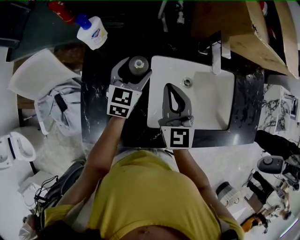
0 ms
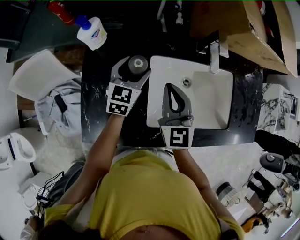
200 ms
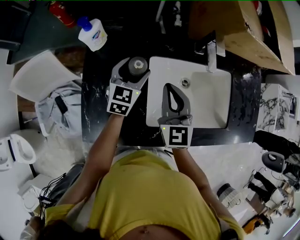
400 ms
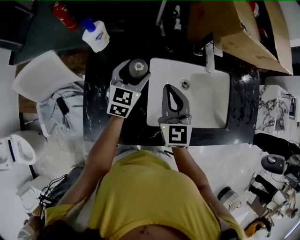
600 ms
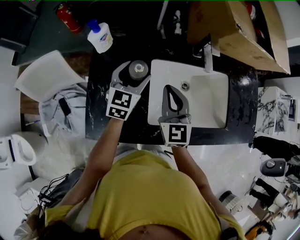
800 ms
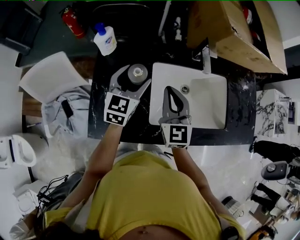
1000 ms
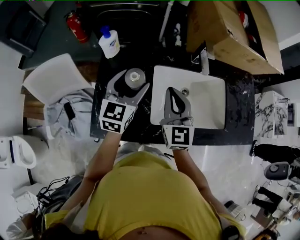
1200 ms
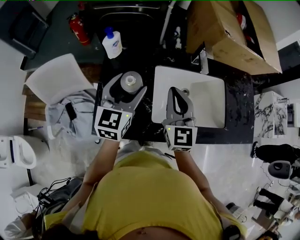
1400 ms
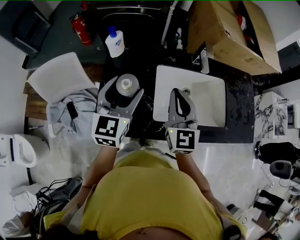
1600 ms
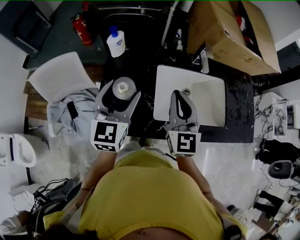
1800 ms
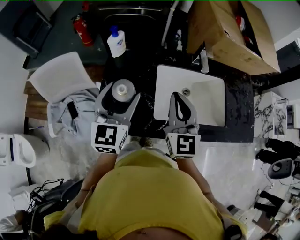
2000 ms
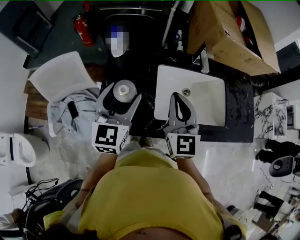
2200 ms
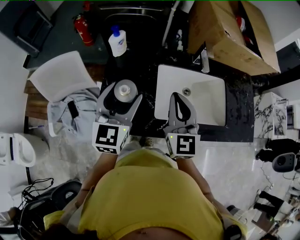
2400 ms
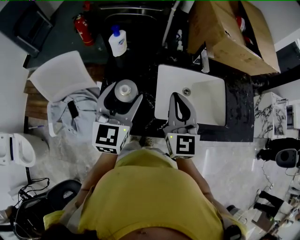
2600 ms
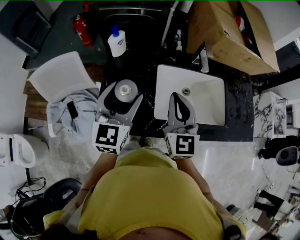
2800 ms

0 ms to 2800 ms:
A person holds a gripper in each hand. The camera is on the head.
0 ms to 1400 ms: The right gripper goes roughly 10 cm upward and backward, while the left gripper is displaced upward and backward by some 20 cm.
1400 ms to 2800 ms: The left gripper heads backward, covering roughly 5 cm. Meanwhile the right gripper shifts by some 5 cm.

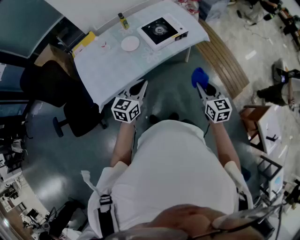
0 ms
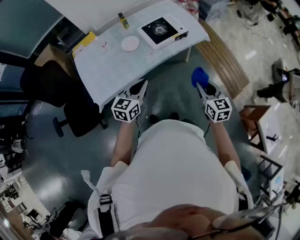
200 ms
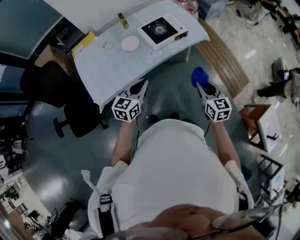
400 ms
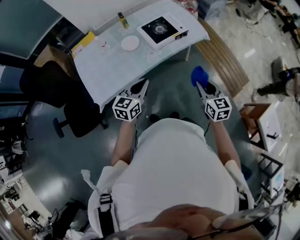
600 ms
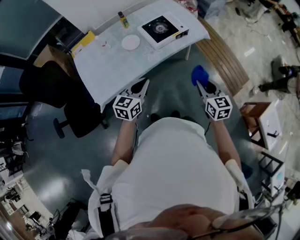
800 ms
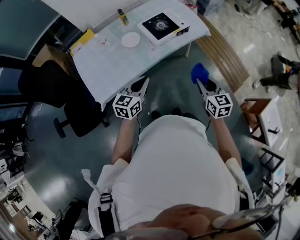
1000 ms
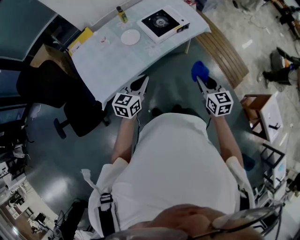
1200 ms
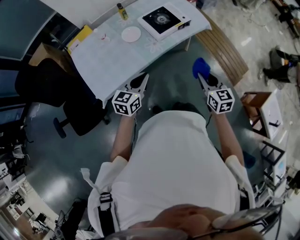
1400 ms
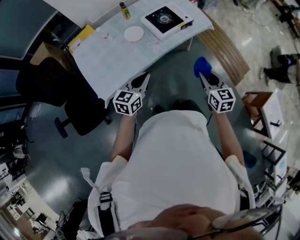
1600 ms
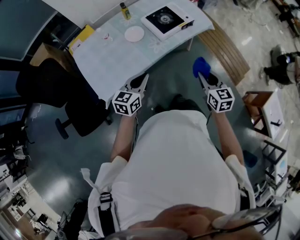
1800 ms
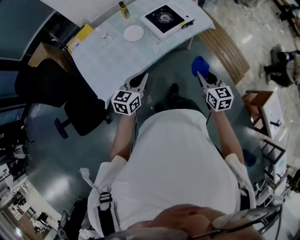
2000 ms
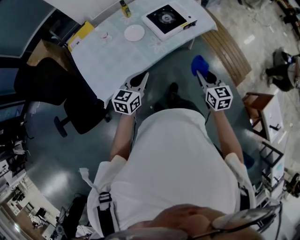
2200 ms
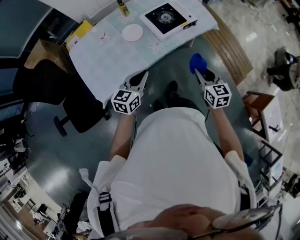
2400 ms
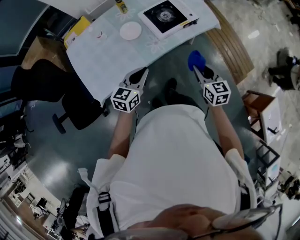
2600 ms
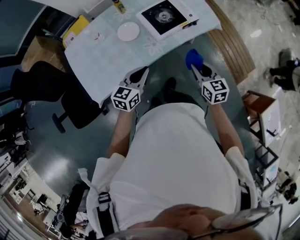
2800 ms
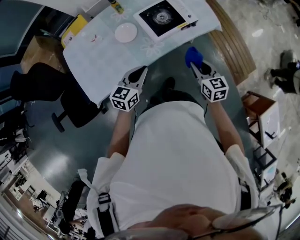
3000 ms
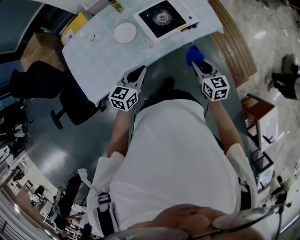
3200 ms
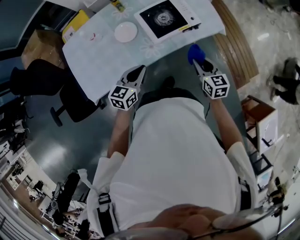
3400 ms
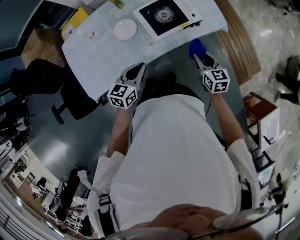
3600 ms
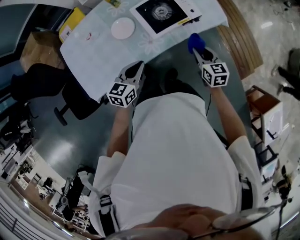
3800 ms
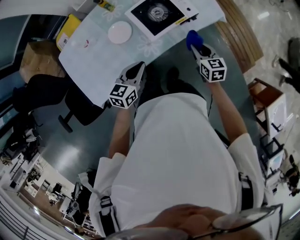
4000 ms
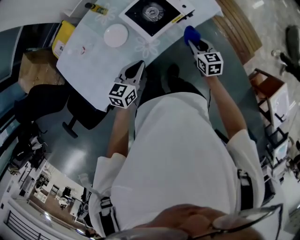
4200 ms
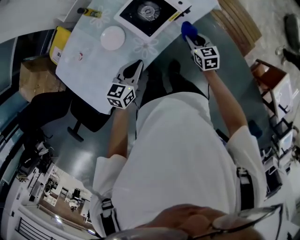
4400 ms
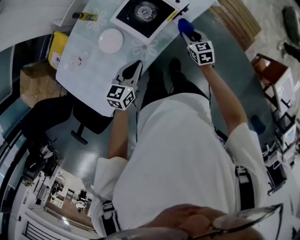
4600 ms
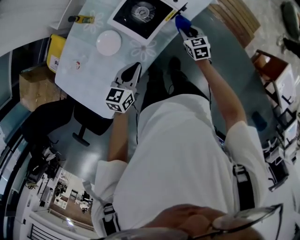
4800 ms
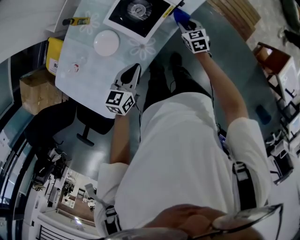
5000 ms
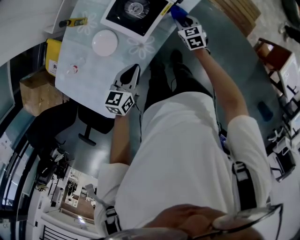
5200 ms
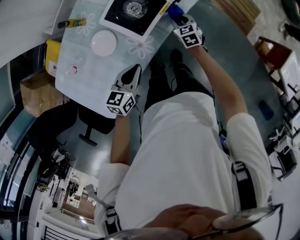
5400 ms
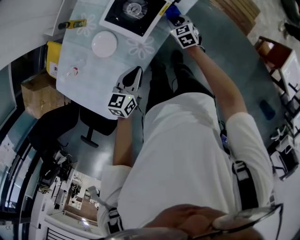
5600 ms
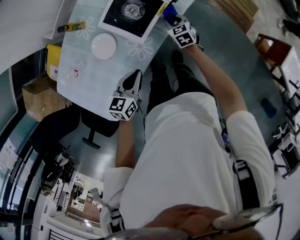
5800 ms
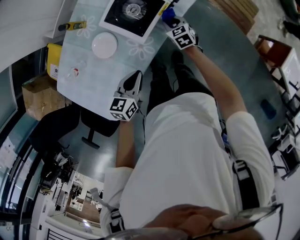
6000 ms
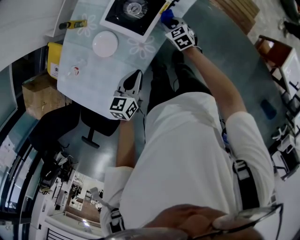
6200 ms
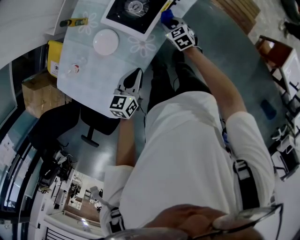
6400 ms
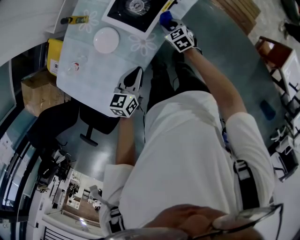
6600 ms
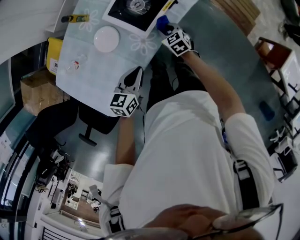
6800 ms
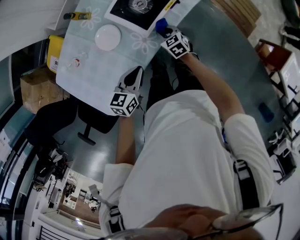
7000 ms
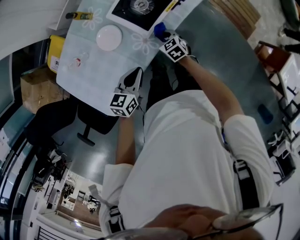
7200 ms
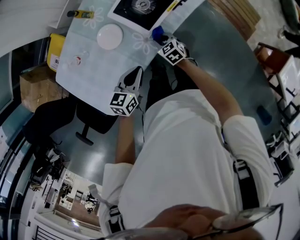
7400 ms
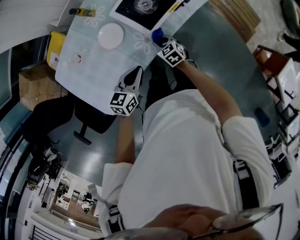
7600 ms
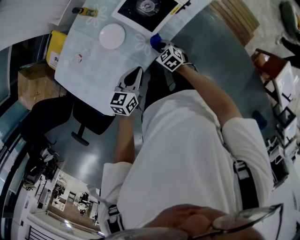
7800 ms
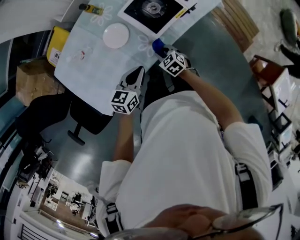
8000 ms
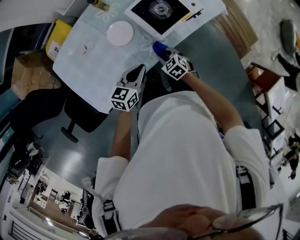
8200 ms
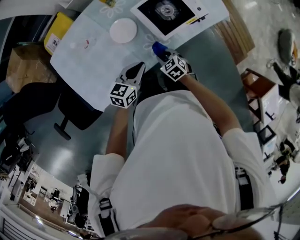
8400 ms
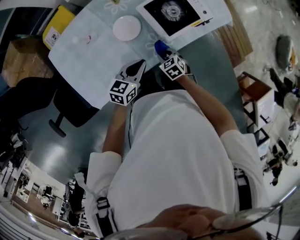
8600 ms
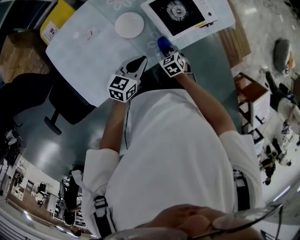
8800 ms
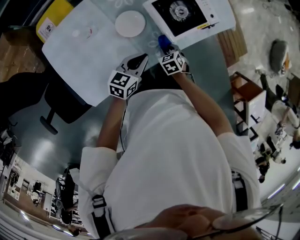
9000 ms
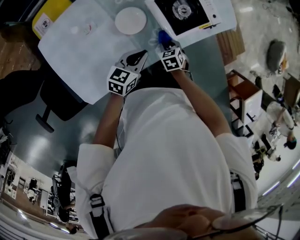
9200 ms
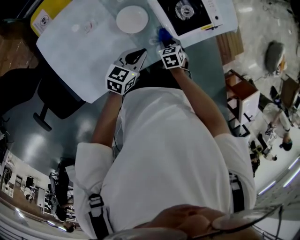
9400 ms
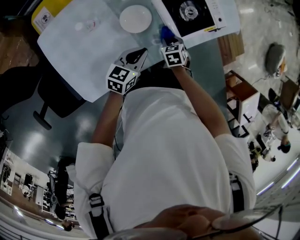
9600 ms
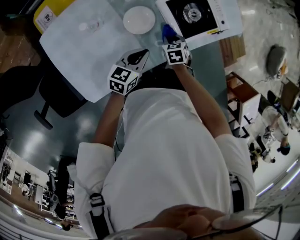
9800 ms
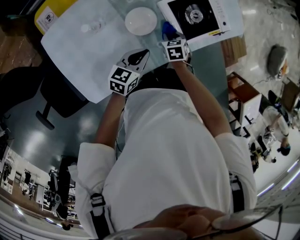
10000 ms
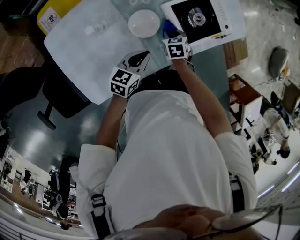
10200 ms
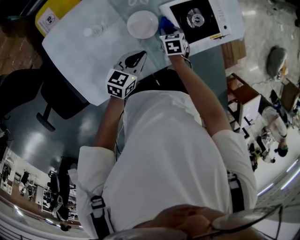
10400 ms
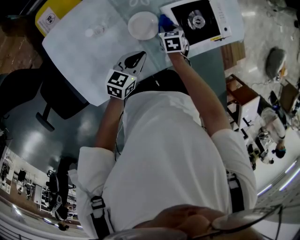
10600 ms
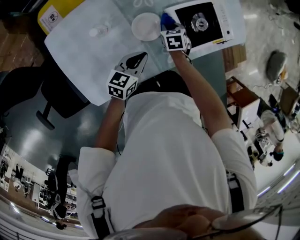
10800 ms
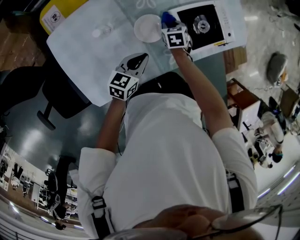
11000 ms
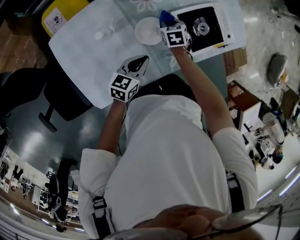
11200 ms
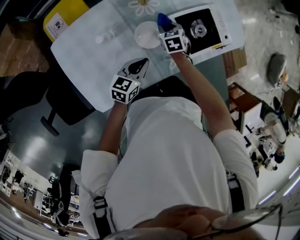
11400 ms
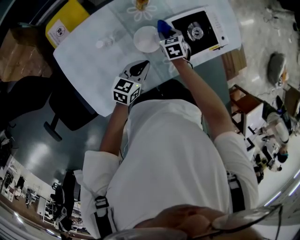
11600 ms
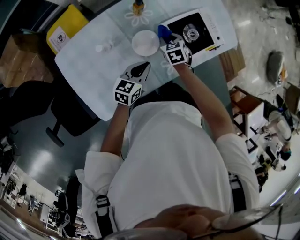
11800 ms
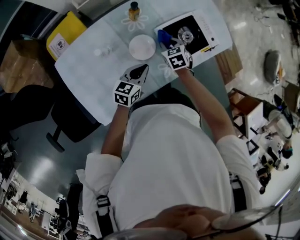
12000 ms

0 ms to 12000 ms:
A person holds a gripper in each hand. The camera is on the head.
0 ms to 1600 ms: The grippers both shift to the left by roughly 5 cm.
1600 ms to 3000 ms: The right gripper travels forward and downward by roughly 20 cm. Meanwhile the left gripper goes about 15 cm forward.
3000 ms to 4400 ms: The left gripper shifts roughly 10 cm forward and downward. The right gripper goes some 20 cm downward and forward.
4400 ms to 6000 ms: The right gripper is displaced downward and to the left by roughly 10 cm. The left gripper ends up approximately 5 cm from where it was.
6000 ms to 7600 ms: The right gripper travels to the left and backward by about 15 cm.
7600 ms to 9000 ms: The right gripper changes place by approximately 5 cm, and changes its angle by roughly 20 degrees; the left gripper is displaced to the left and forward by some 10 cm.
9000 ms to 10400 ms: The right gripper is displaced forward and to the left by approximately 15 cm, while the left gripper goes some 10 cm to the left.
10400 ms to 12000 ms: The right gripper goes roughly 10 cm upward.

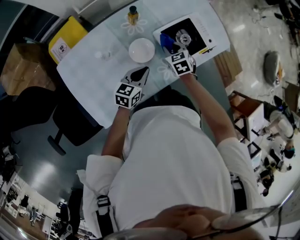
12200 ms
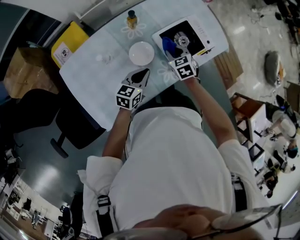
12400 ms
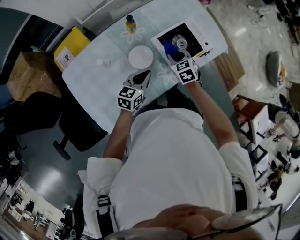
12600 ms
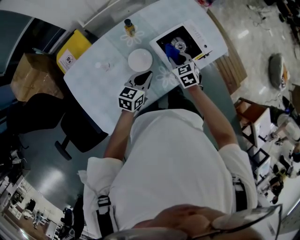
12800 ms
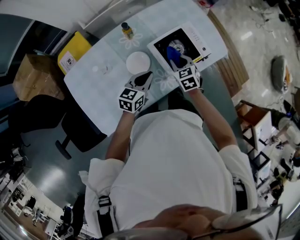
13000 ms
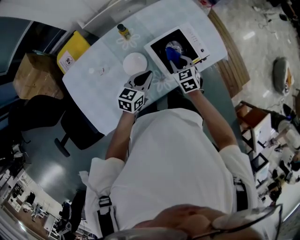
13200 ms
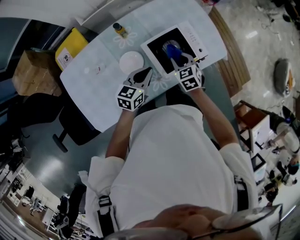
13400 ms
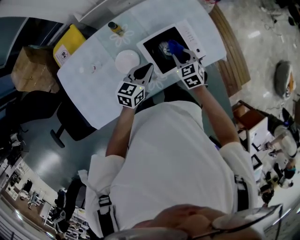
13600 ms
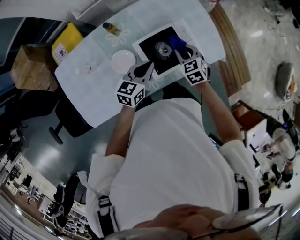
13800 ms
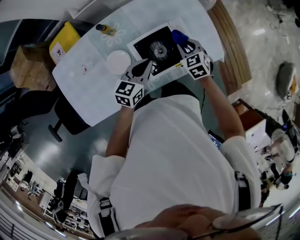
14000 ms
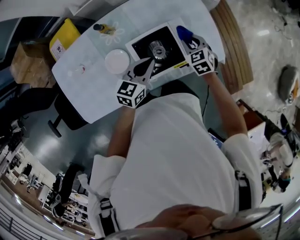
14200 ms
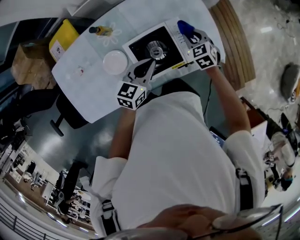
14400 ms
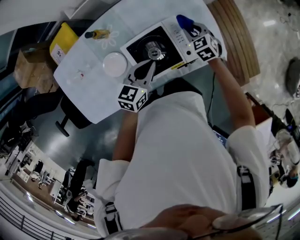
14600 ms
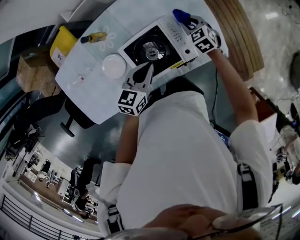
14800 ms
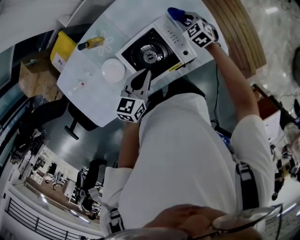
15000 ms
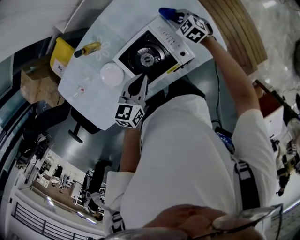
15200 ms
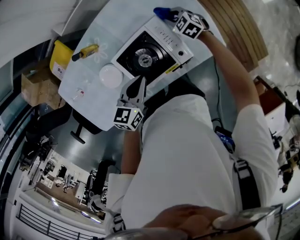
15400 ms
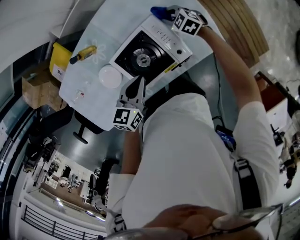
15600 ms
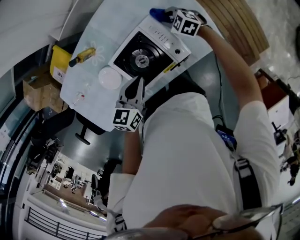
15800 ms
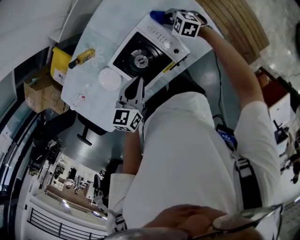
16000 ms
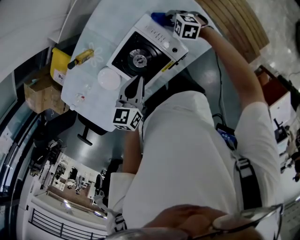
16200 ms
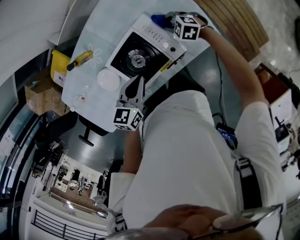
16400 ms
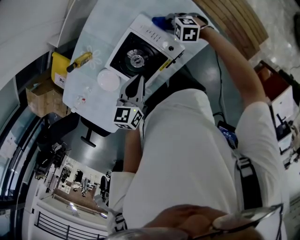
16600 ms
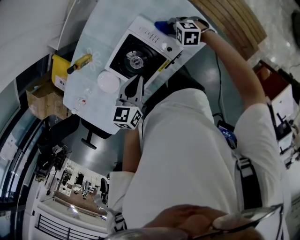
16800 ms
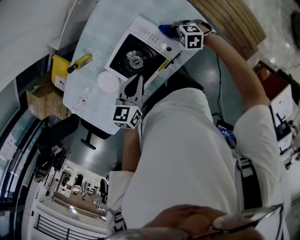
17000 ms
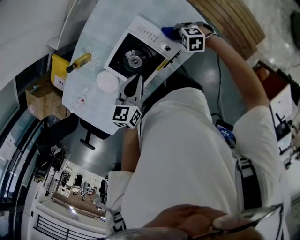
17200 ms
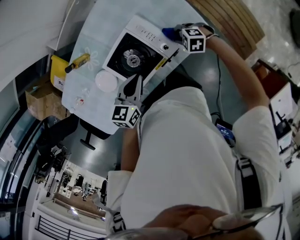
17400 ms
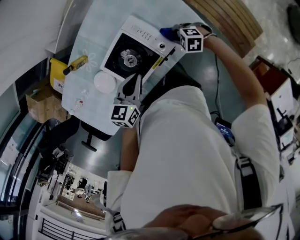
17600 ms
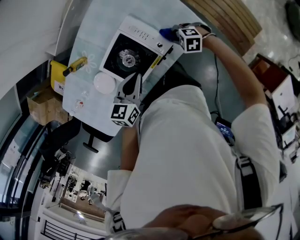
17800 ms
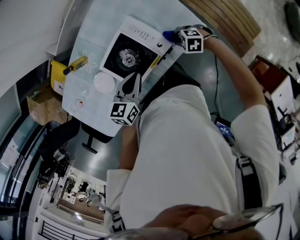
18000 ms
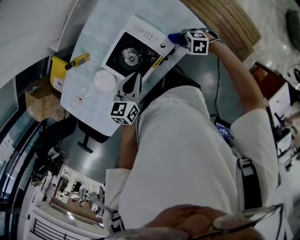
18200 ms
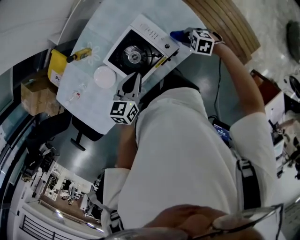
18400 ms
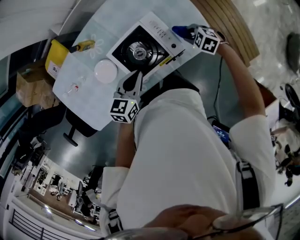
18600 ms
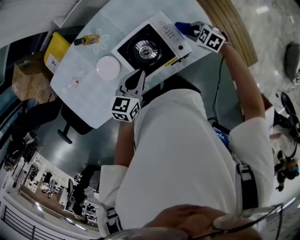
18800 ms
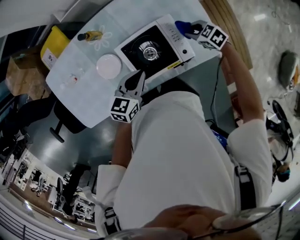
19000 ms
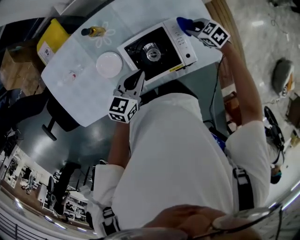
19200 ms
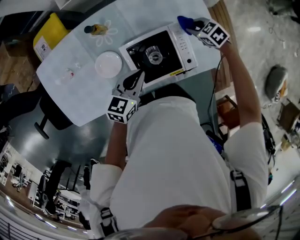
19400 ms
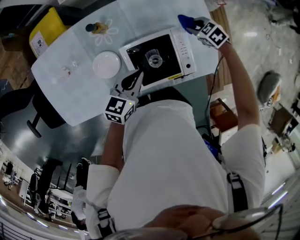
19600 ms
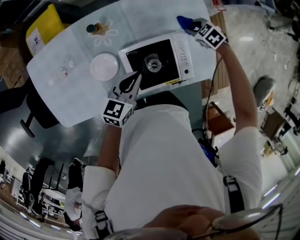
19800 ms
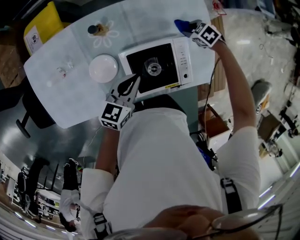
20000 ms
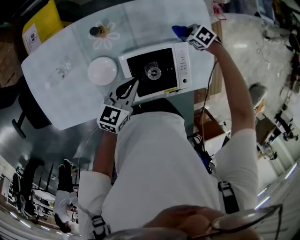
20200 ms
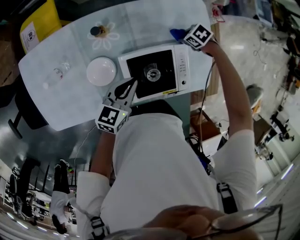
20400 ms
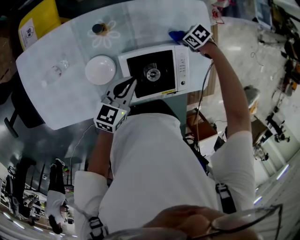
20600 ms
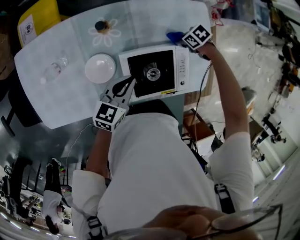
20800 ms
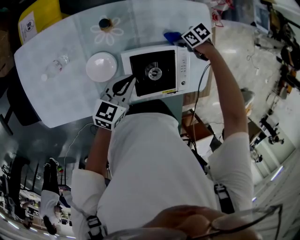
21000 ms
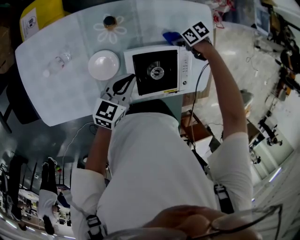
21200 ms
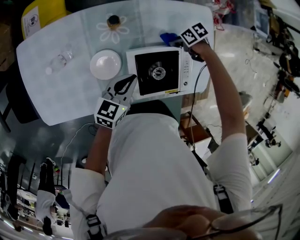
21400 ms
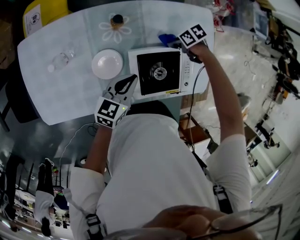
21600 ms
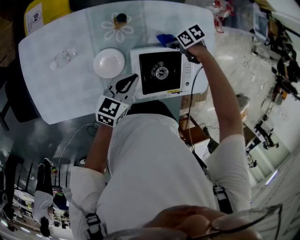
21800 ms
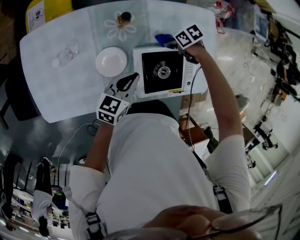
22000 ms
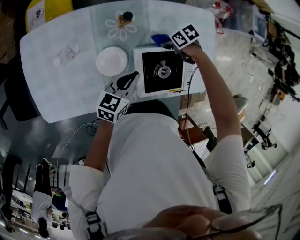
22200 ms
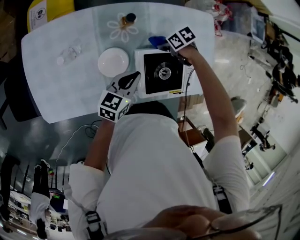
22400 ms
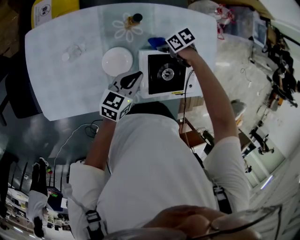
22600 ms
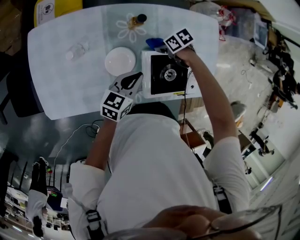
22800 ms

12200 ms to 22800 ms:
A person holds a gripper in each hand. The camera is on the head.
12200 ms to 13800 ms: Both grippers move to the right and forward, roughly 20 cm.
13800 ms to 15200 ms: The left gripper heads to the right, covering approximately 10 cm; the right gripper moves forward, downward and to the right, roughly 25 cm.
15200 ms to 16800 ms: The right gripper shifts by some 10 cm, and swivels some 20 degrees.
16800 ms to 18200 ms: The right gripper shifts by roughly 10 cm.
18200 ms to 19800 ms: The right gripper moves about 30 cm, while the left gripper shifts by about 15 cm.
19800 ms to 21200 ms: The right gripper shifts by approximately 10 cm, and swivels about 40 degrees, while the left gripper ends up about 5 cm from where it was.
21200 ms to 22800 ms: The right gripper ends up approximately 20 cm from where it was. The left gripper shifts by approximately 5 cm.
